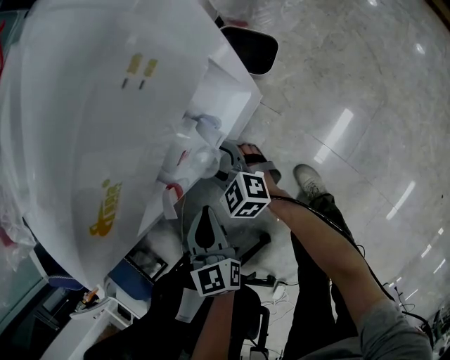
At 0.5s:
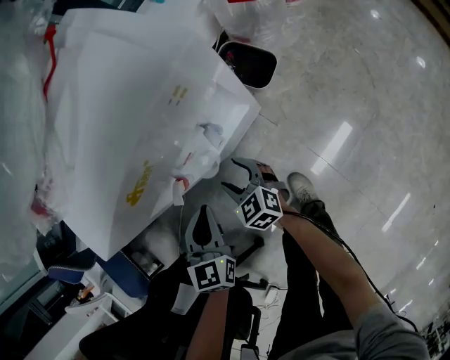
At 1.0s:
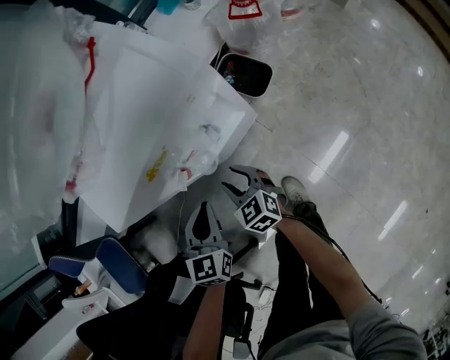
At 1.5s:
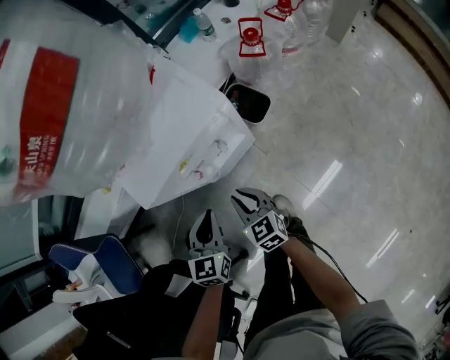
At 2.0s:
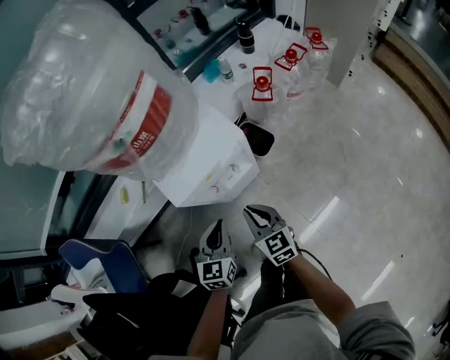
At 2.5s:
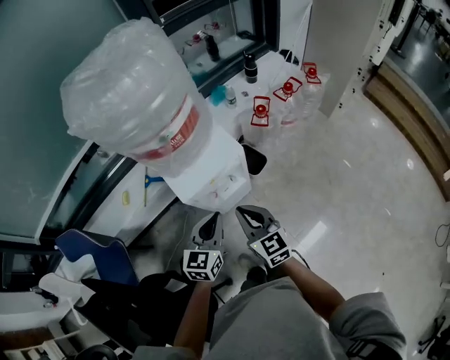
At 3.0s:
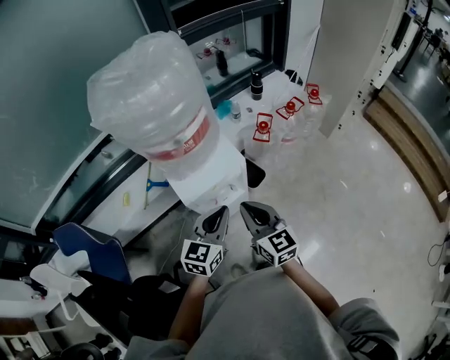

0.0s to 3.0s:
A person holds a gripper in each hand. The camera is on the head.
0.0s to 1.5s: The left gripper shifts approximately 15 cm upward. The right gripper is displaced upward and backward by approximately 20 cm, and closes its fingers.
1.5s to 3.0s: The grippers both shift upward by roughly 35 cm. The right gripper turns by some 20 degrees. Meanwhile the left gripper swivels some 20 degrees.

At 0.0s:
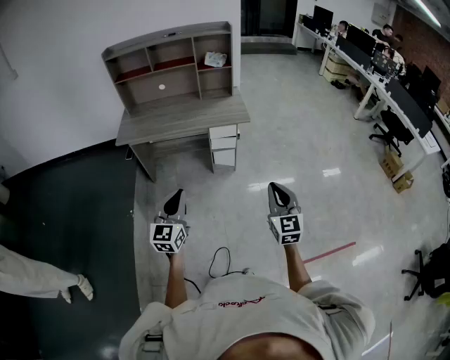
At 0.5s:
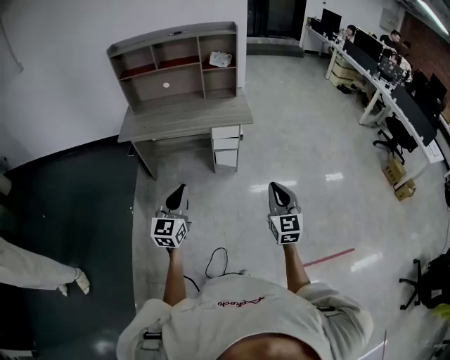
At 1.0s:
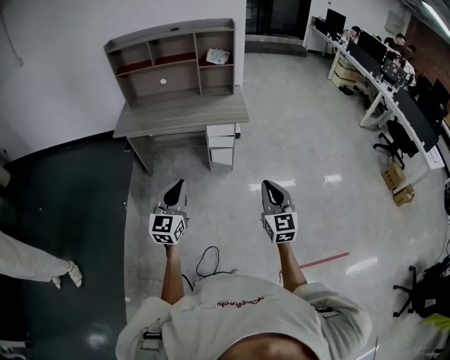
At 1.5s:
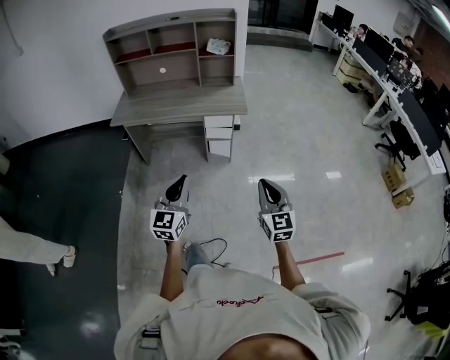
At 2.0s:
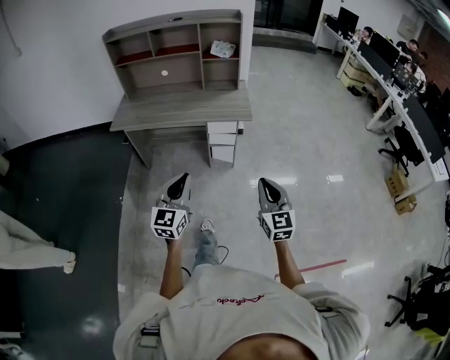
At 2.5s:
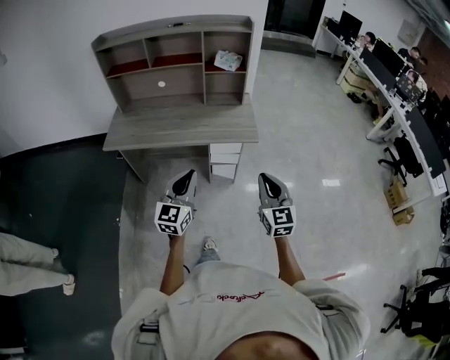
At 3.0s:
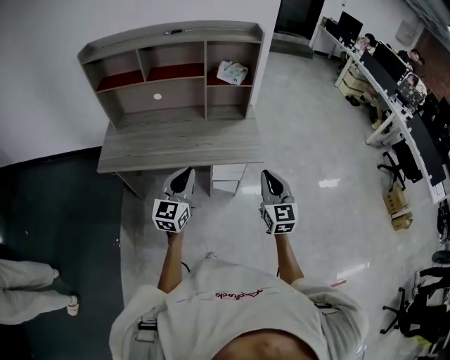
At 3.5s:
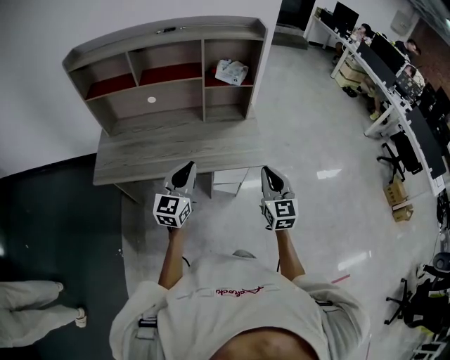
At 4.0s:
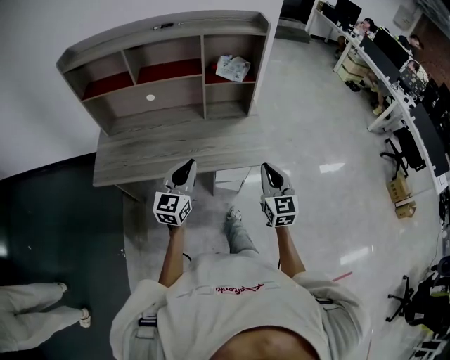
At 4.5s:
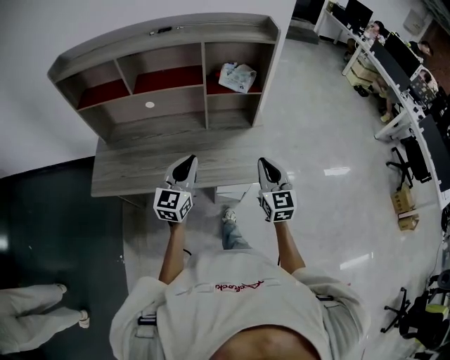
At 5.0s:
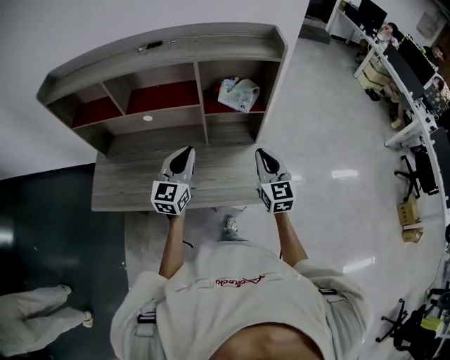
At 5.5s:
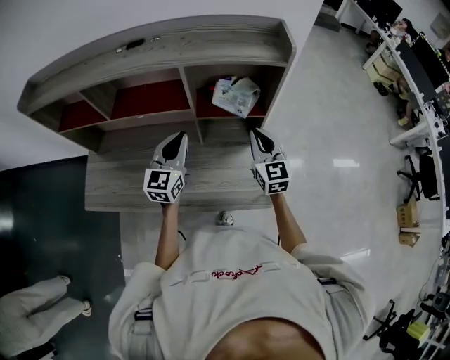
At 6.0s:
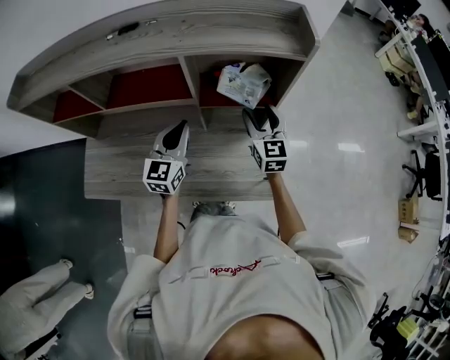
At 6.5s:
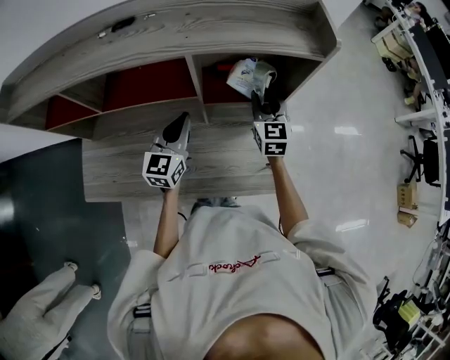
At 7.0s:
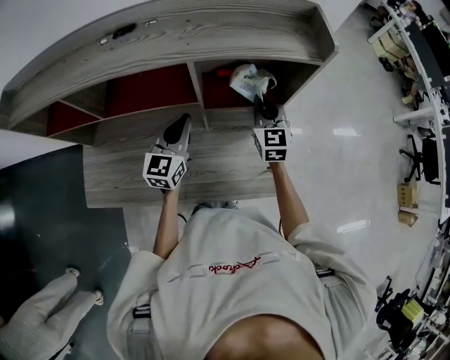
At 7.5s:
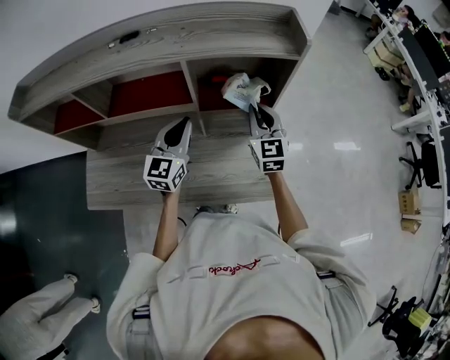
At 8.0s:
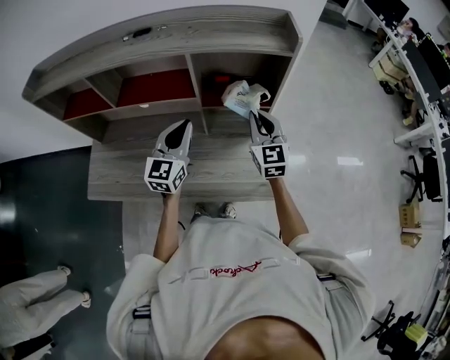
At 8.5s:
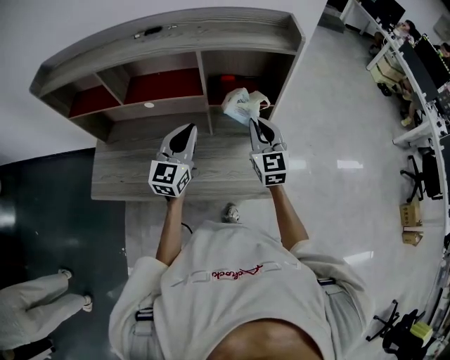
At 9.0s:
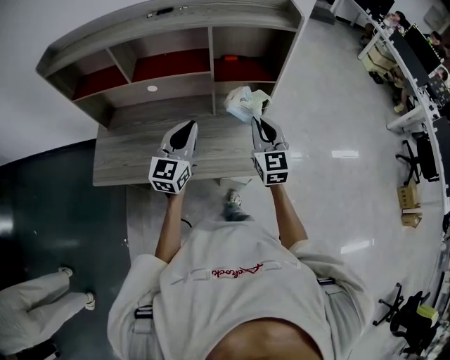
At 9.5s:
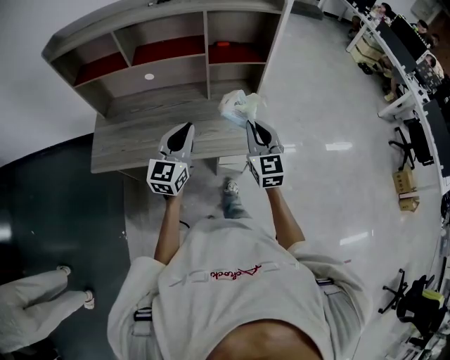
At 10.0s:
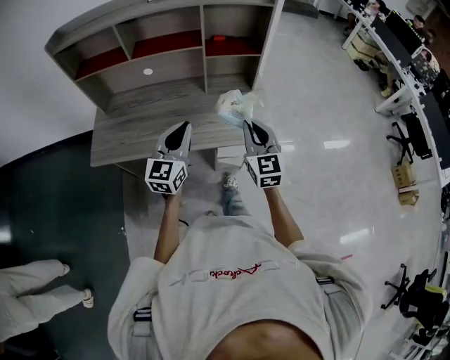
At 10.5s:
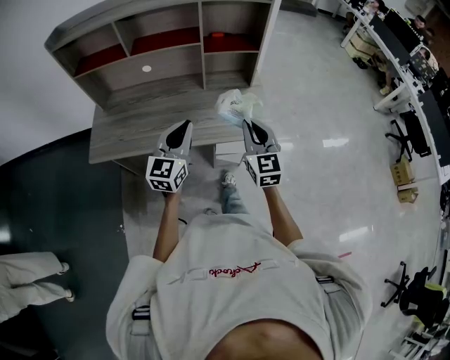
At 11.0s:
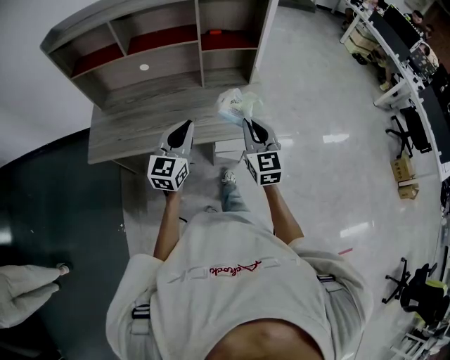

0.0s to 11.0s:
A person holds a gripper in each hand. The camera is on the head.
0.0s to 2.0s: The left gripper heads to the right and forward, covering about 15 cm, while the right gripper is displaced forward by approximately 10 cm.
2.0s to 3.5s: Both grippers are carried forward, about 40 cm.
3.5s to 5.5s: Both grippers travel together forward, roughly 40 cm.
5.5s to 7.5s: The right gripper shifts roughly 5 cm forward, and opens and closes again.
7.5s to 9.0s: Both grippers move backward, roughly 20 cm.
9.0s to 11.0s: The grippers both shift backward by roughly 15 cm.

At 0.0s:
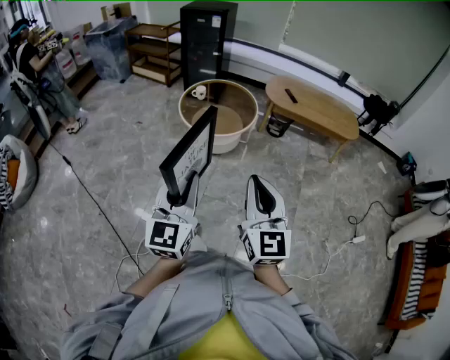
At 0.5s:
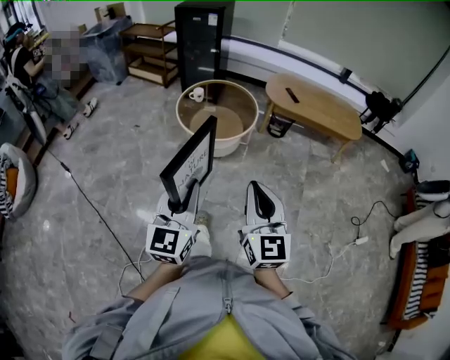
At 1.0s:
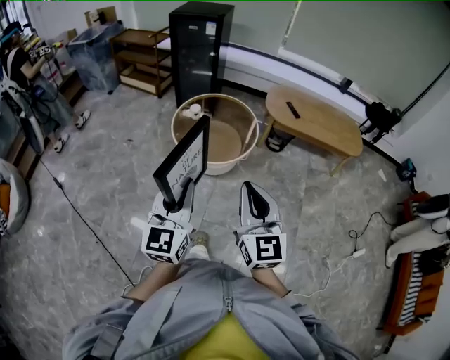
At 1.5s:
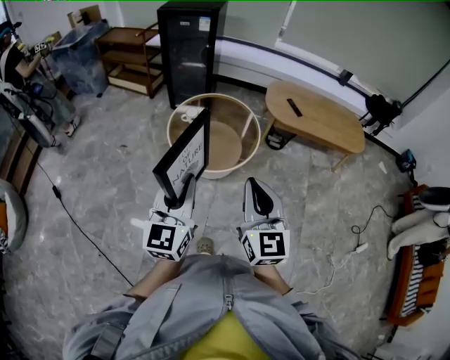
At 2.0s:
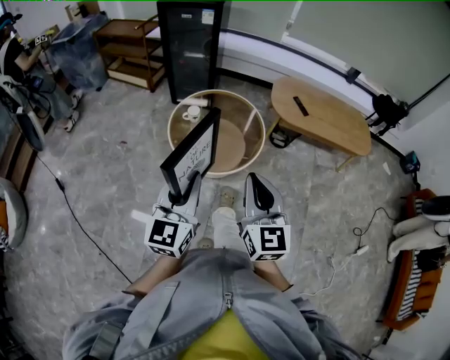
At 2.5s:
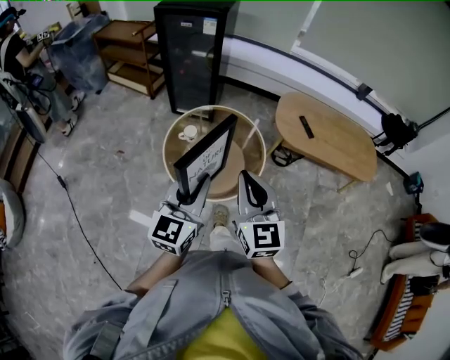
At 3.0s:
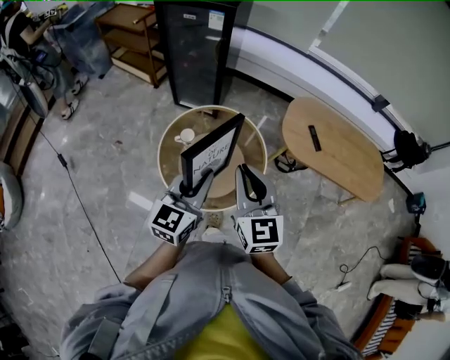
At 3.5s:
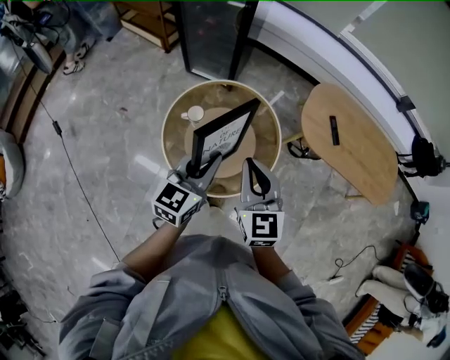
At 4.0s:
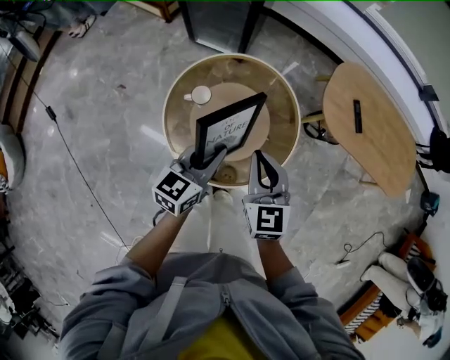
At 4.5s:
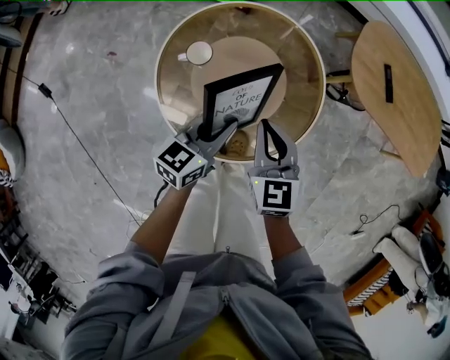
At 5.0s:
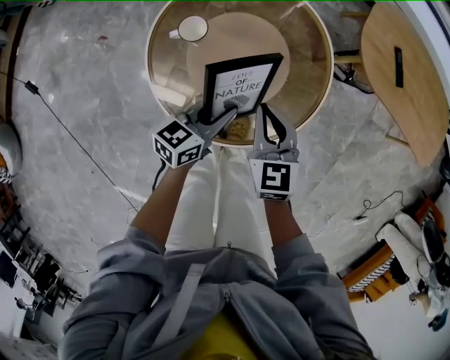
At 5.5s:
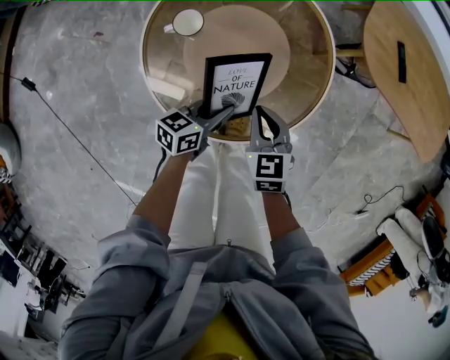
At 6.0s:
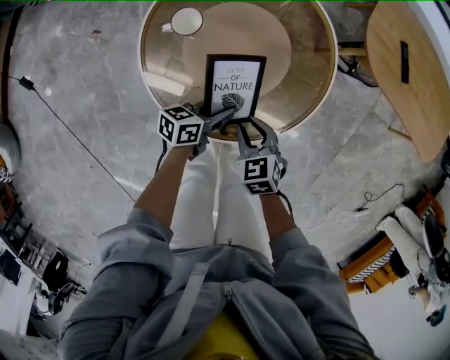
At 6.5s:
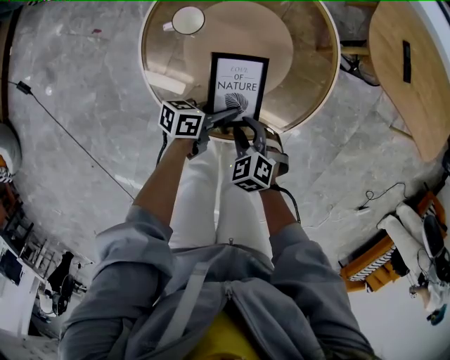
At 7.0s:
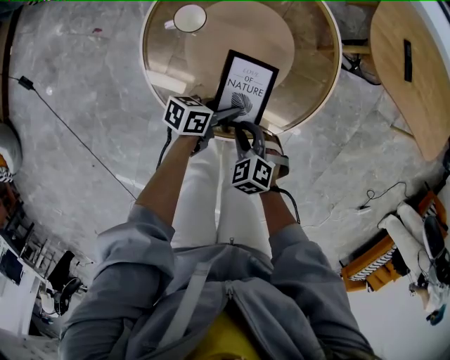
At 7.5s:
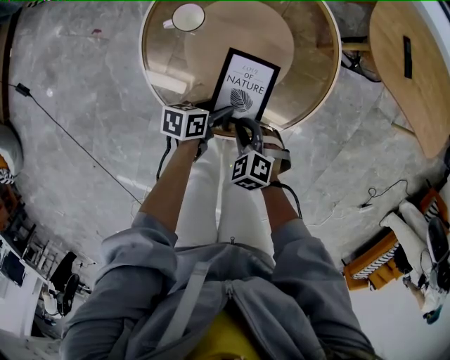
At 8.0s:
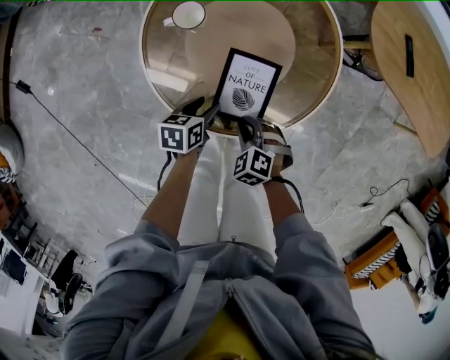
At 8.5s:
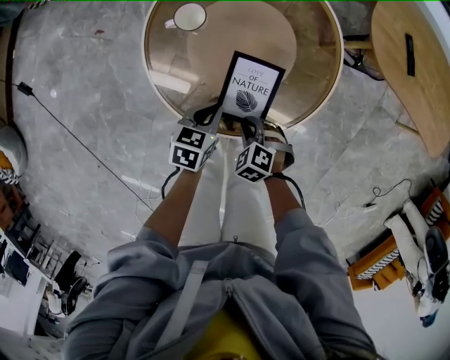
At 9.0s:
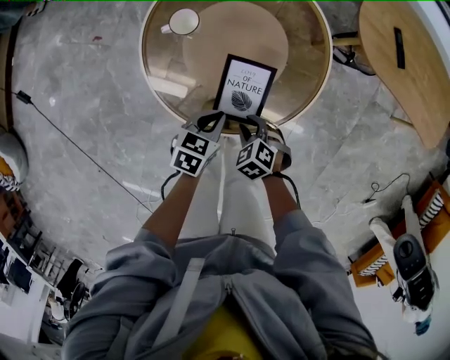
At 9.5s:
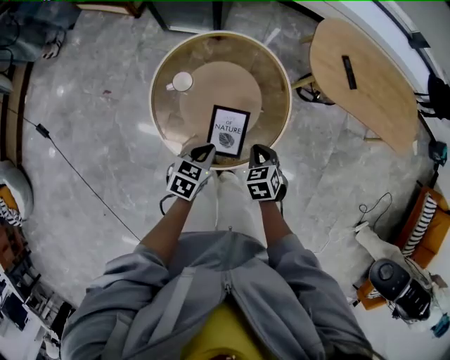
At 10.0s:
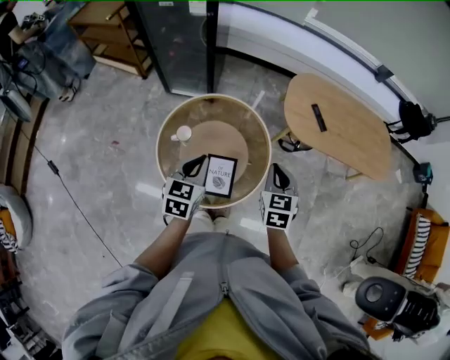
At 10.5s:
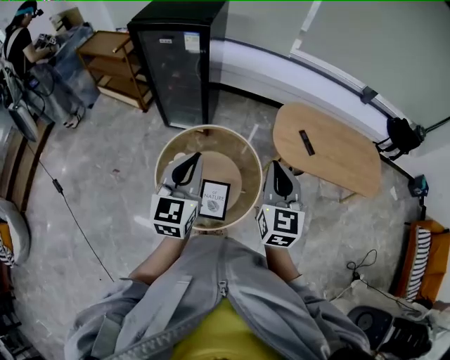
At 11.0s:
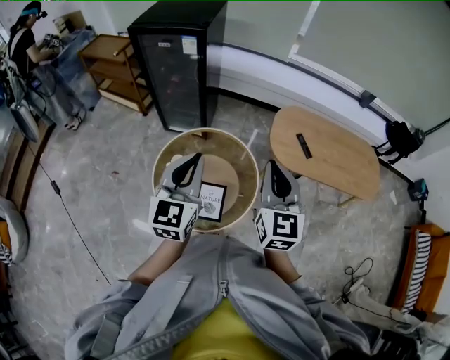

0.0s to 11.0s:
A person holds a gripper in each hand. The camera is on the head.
0.0s to 2.0s: The pair of grippers is taken forward, some 40 cm.
2.0s to 3.5s: The left gripper is displaced forward and downward by about 40 cm; the right gripper goes some 35 cm forward, and swivels about 20 degrees.
3.5s to 5.5s: The two grippers go about 35 cm downward. The left gripper rotates approximately 40 degrees; the right gripper rotates some 30 degrees.
5.5s to 7.5s: The left gripper shifts roughly 5 cm downward, turns by approximately 30 degrees, and opens its fingers; the right gripper shifts roughly 15 cm backward and downward, and changes its angle by about 40 degrees.
7.5s to 9.0s: The left gripper is displaced upward by roughly 5 cm, swivels approximately 30 degrees, and closes.
9.0s to 11.0s: The two grippers go approximately 60 cm upward. The right gripper angles its fingers upward, by roughly 60 degrees, and closes its fingers. The left gripper angles its fingers upward, by approximately 40 degrees.

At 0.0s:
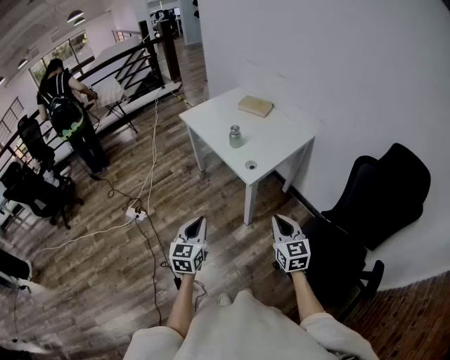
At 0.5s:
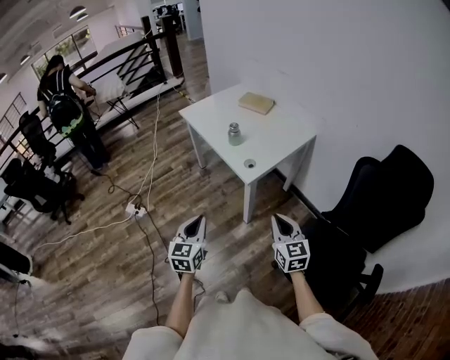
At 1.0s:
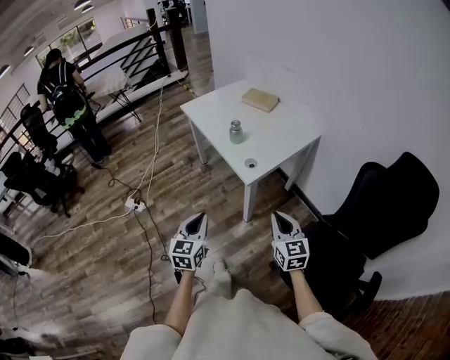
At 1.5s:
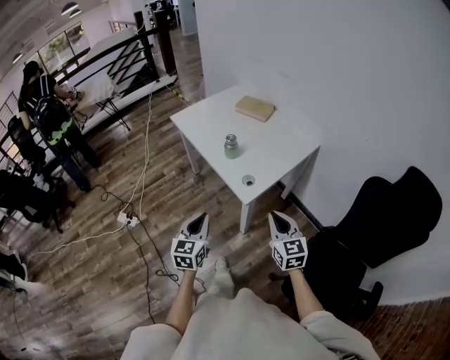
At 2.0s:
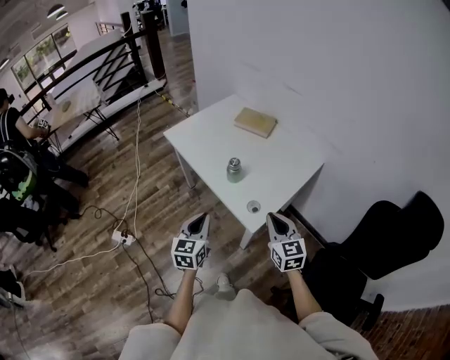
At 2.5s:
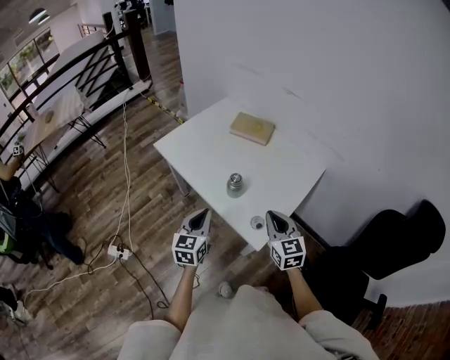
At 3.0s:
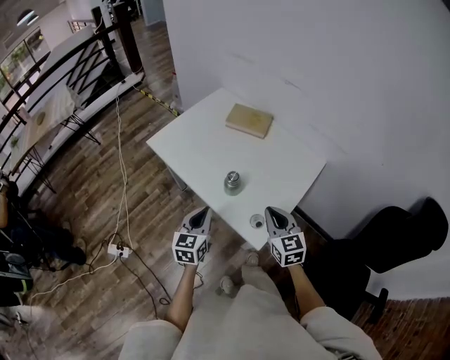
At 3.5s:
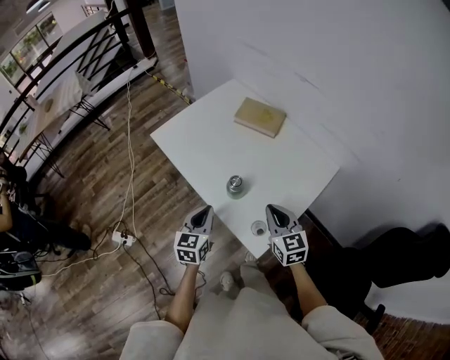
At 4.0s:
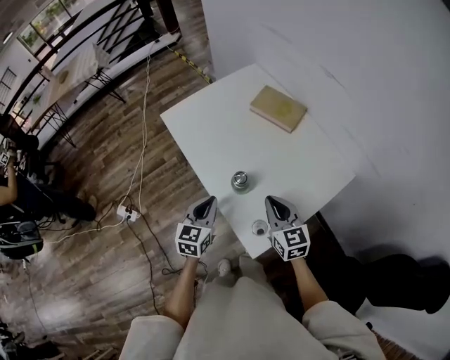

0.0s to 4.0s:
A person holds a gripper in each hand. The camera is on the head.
0.0s to 2.0s: The grippers both shift forward by some 30 cm.
2.0s to 4.0s: The two grippers go about 25 cm forward.
